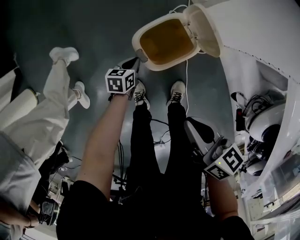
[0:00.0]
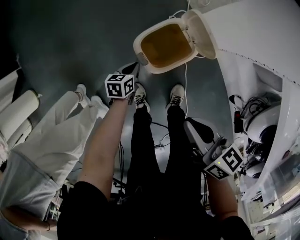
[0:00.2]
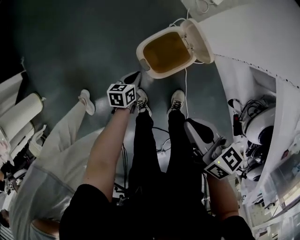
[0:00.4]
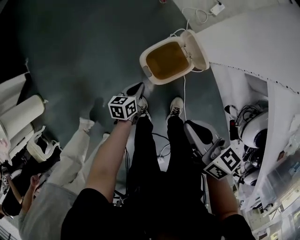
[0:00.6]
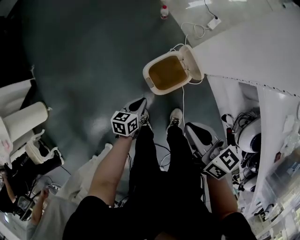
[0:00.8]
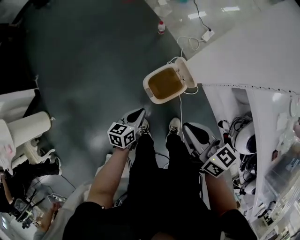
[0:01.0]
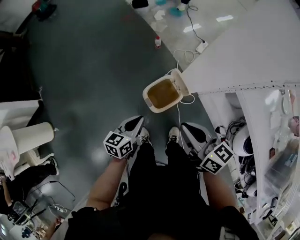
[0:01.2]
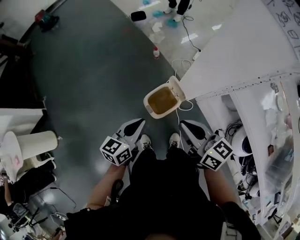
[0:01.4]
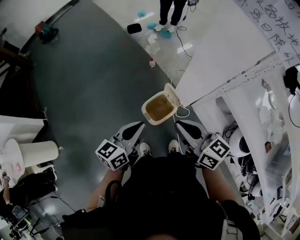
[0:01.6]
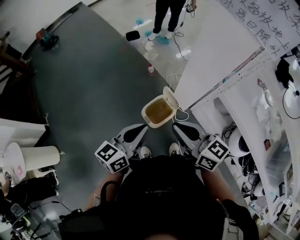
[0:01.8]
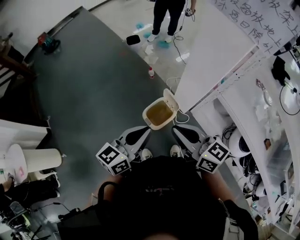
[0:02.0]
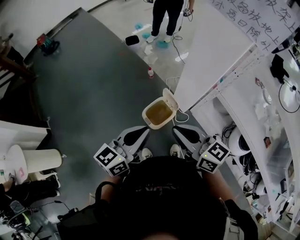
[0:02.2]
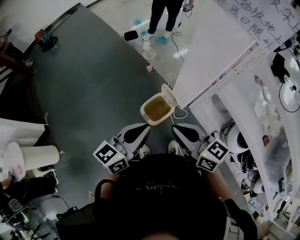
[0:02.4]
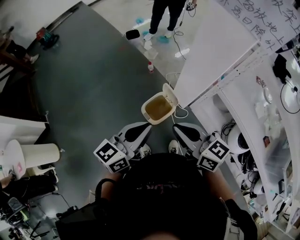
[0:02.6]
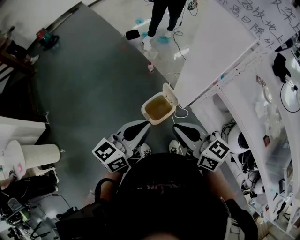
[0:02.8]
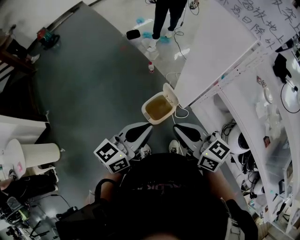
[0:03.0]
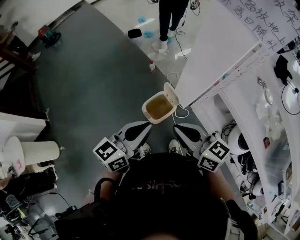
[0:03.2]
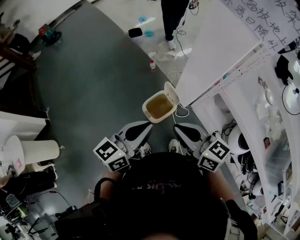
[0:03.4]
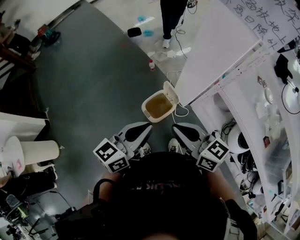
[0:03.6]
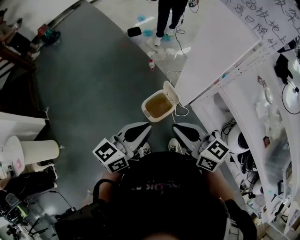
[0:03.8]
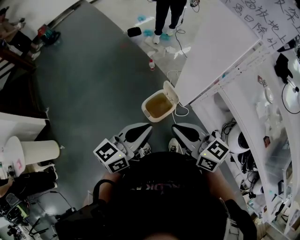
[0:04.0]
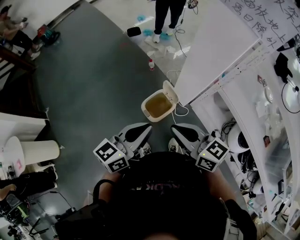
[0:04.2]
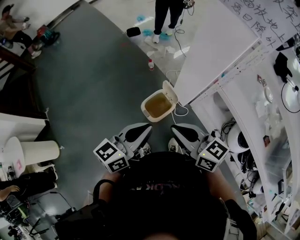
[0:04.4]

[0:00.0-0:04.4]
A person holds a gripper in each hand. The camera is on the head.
0:00.0 to 0:01.4: The left gripper moves upward, approximately 50 cm, and tilts its fingers approximately 30 degrees upward. The right gripper shifts about 30 cm upward, and turns by roughly 20 degrees.
0:01.4 to 0:03.0: The left gripper goes some 15 cm upward, while the right gripper is displaced upward and backward by some 10 cm.
0:03.0 to 0:04.4: The two grippers keep their place.

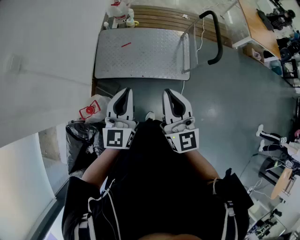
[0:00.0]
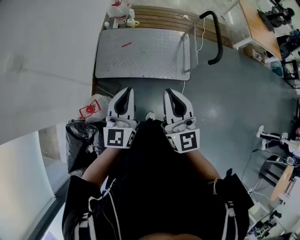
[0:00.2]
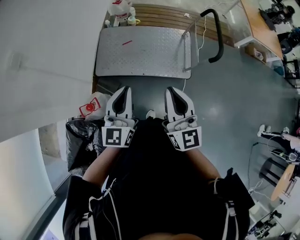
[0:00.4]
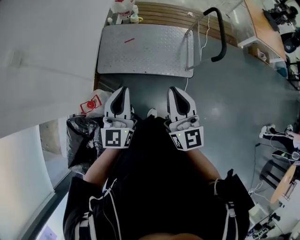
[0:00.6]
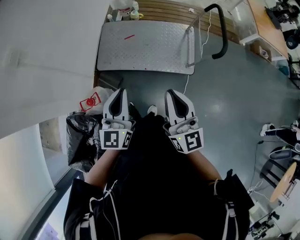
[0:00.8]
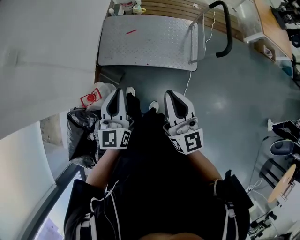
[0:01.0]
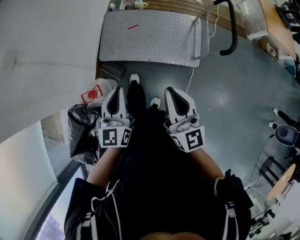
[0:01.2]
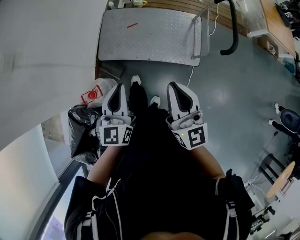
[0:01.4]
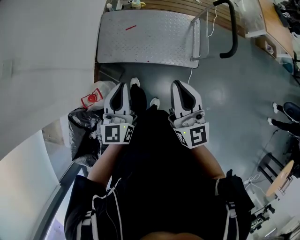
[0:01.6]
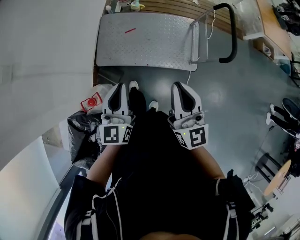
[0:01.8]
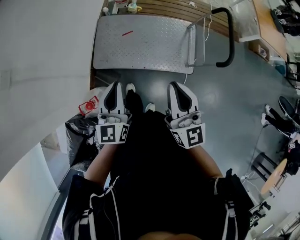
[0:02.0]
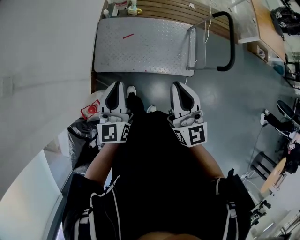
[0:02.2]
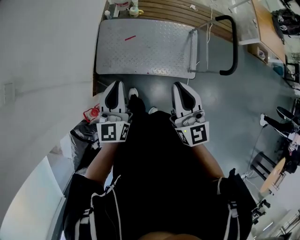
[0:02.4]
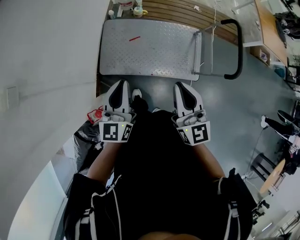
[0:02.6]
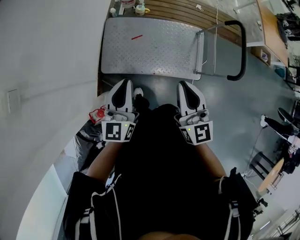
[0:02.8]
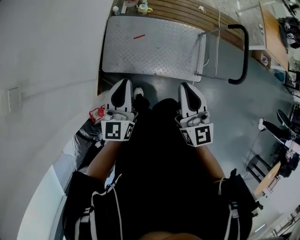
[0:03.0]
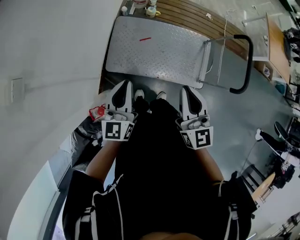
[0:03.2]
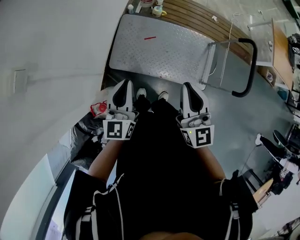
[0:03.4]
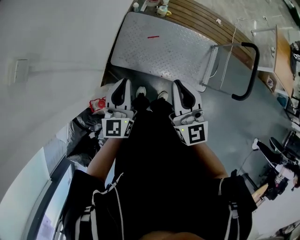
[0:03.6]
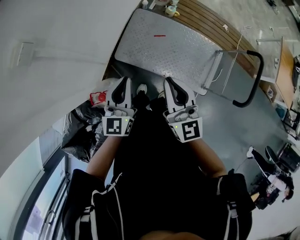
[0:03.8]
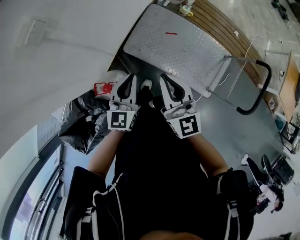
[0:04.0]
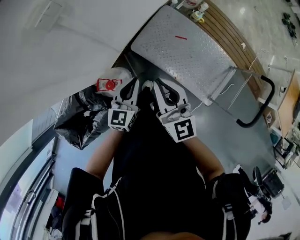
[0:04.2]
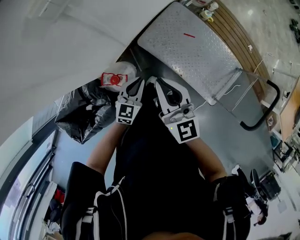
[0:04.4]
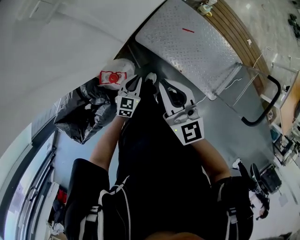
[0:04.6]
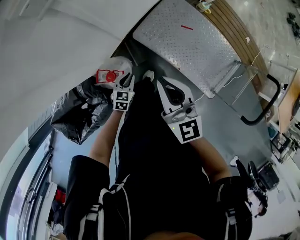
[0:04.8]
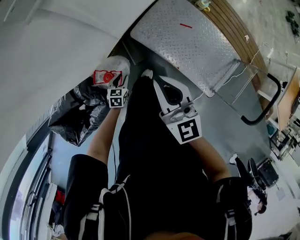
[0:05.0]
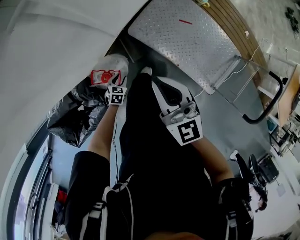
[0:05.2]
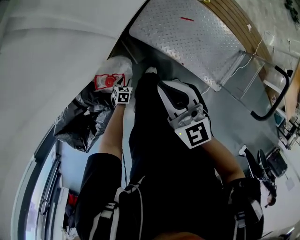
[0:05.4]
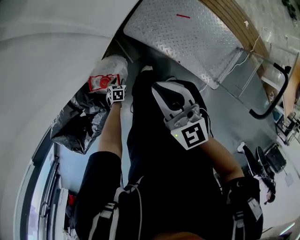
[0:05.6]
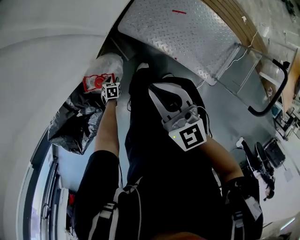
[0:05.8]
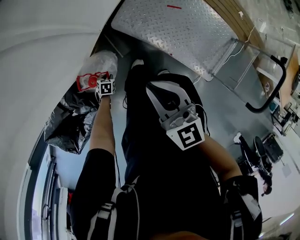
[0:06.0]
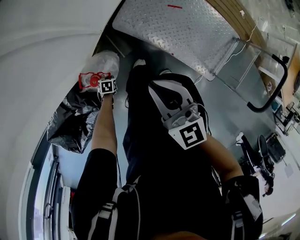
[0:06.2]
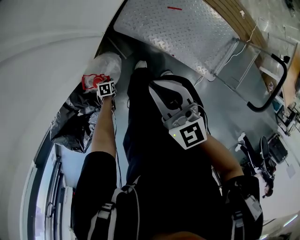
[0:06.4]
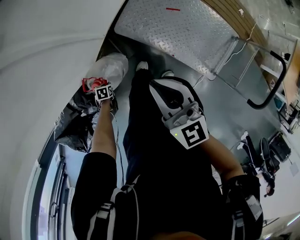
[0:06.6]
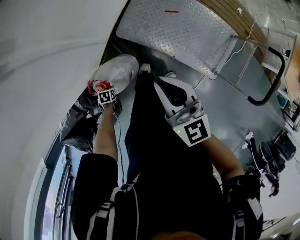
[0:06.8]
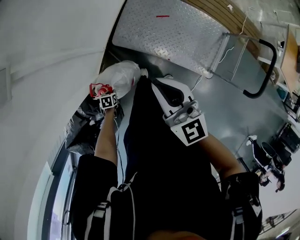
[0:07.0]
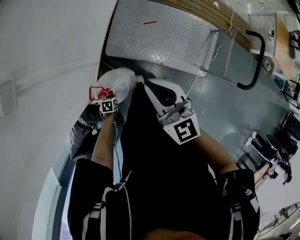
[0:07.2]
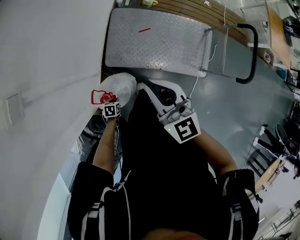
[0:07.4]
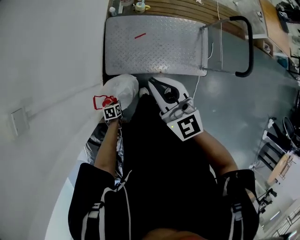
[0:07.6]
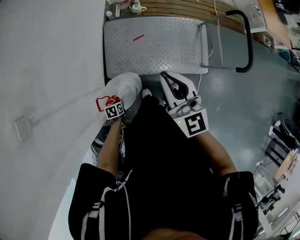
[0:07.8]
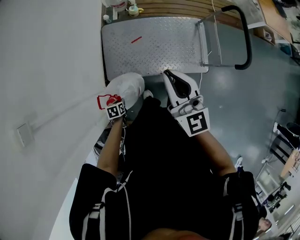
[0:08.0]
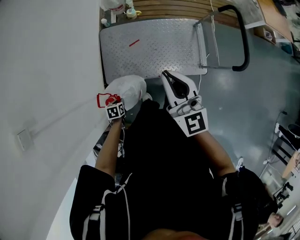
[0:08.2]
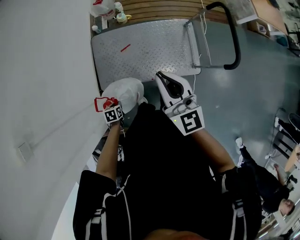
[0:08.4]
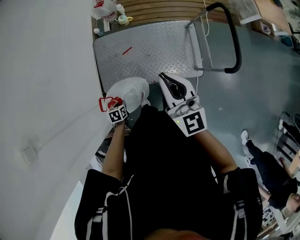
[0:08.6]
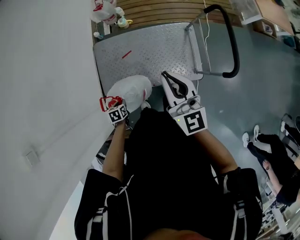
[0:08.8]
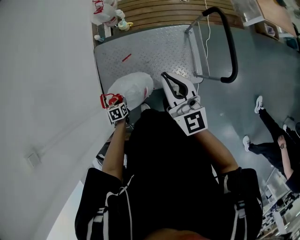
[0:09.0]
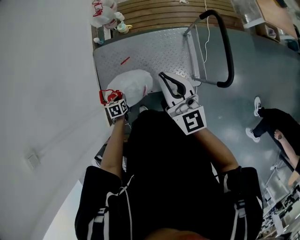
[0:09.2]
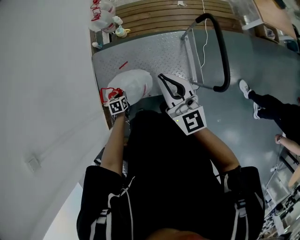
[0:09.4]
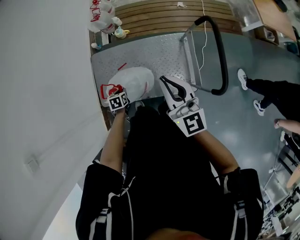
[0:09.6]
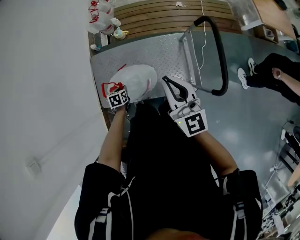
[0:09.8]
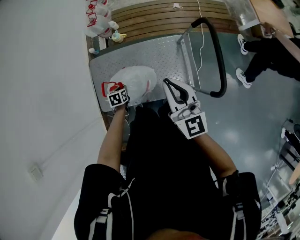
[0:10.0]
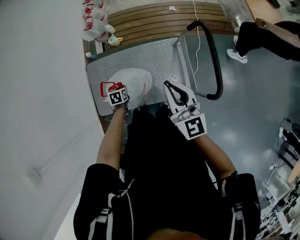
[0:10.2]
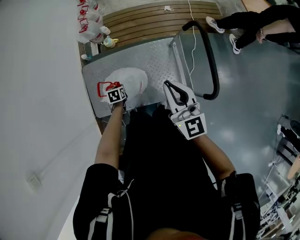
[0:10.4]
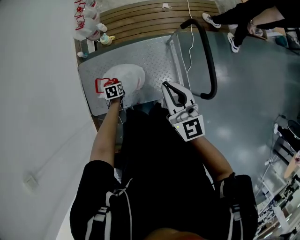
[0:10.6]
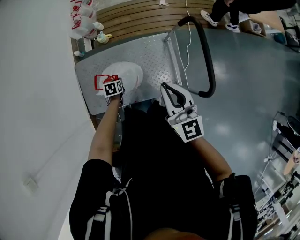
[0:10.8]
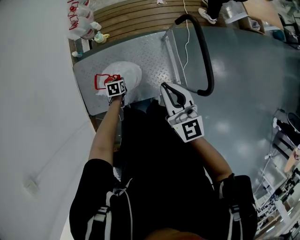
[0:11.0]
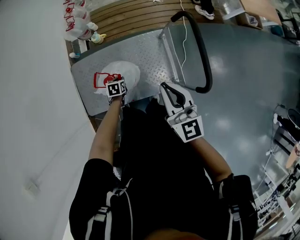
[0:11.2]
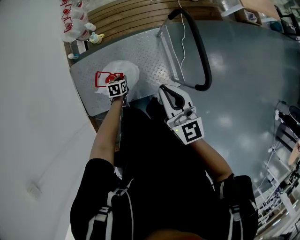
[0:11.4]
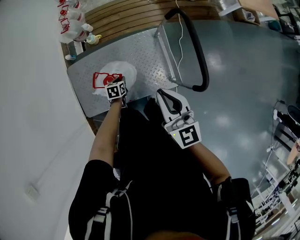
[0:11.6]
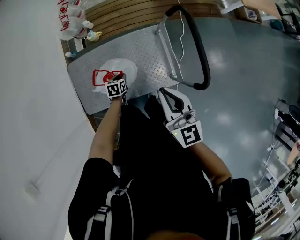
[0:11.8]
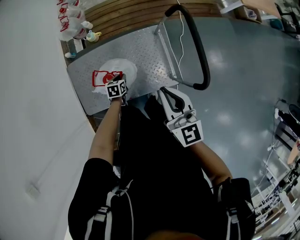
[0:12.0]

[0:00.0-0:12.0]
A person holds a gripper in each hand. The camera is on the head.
0:00.0 to 0:01.6: The left gripper changes place by roughly 5 cm; the right gripper is displaced forward by some 5 cm.
0:01.6 to 0:03.0: Both grippers move forward and to the left, approximately 20 cm.
0:03.0 to 0:04.4: The right gripper shifts by approximately 25 cm, and turns by approximately 40 degrees; the left gripper heads downward, covering about 20 cm, and rotates about 30 degrees.
0:04.4 to 0:06.0: The left gripper moves downward, some 40 cm, tips its fingers downward by about 50 degrees, and opens up, while the right gripper heads downward, covering some 15 cm.
0:06.0 to 0:07.6: The grippers both shift upward by roughly 20 cm. The right gripper turns by approximately 30 degrees.
0:07.6 to 0:09.0: The left gripper travels forward and to the right by approximately 30 cm; the right gripper shifts some 35 cm to the right and forward.
0:09.0 to 0:10.4: The right gripper is displaced to the right and forward by some 15 cm. Meanwhile the left gripper goes roughly 25 cm forward and to the right.
0:10.4 to 0:12.0: The left gripper goes some 10 cm to the right. Meanwhile the right gripper shifts roughly 5 cm to the right.

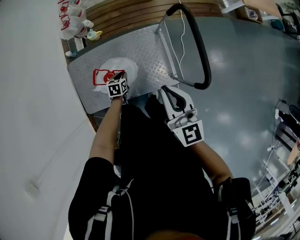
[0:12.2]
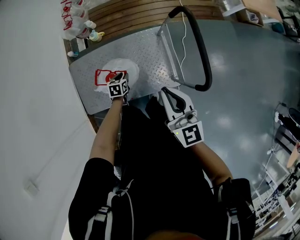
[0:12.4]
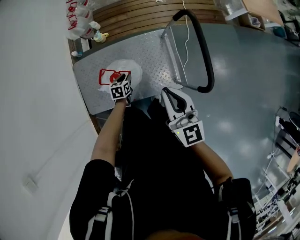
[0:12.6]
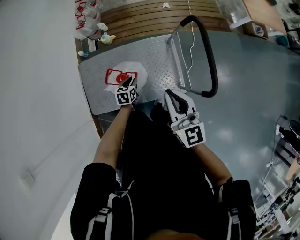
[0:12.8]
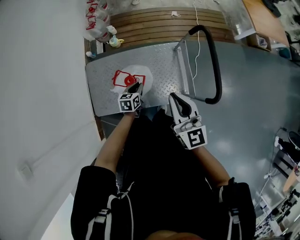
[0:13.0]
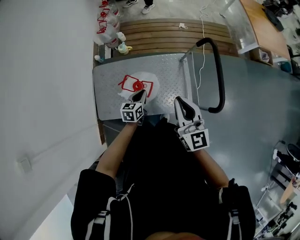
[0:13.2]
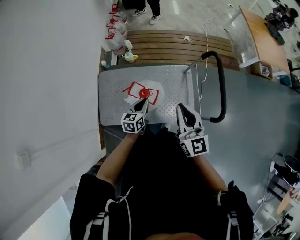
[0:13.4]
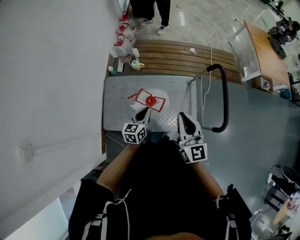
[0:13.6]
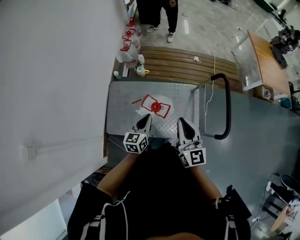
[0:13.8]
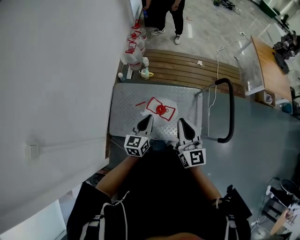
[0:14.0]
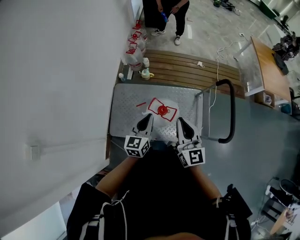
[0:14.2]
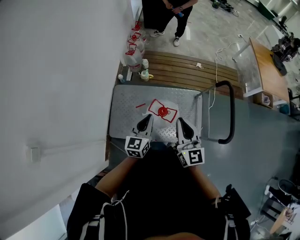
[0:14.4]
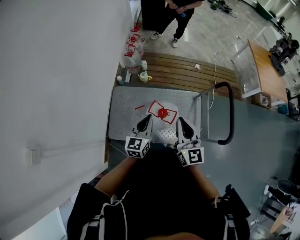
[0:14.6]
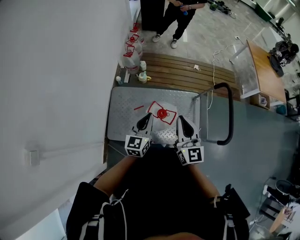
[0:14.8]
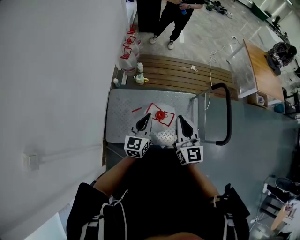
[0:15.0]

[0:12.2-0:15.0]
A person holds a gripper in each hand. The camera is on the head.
0:12.2 to 0:13.6: The right gripper heads to the left and upward, covering roughly 10 cm. The left gripper travels upward by approximately 25 cm, and tilts its fingers approximately 30 degrees upward.
0:13.6 to 0:15.0: The left gripper moves upward and to the left, about 15 cm; the right gripper moves to the left, about 10 cm.

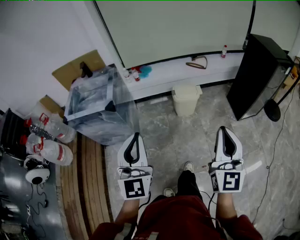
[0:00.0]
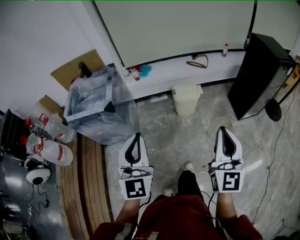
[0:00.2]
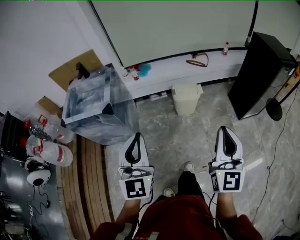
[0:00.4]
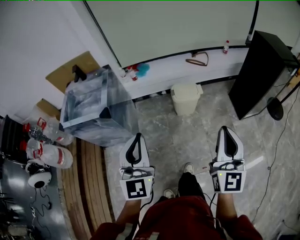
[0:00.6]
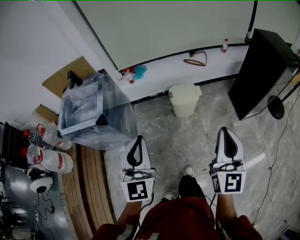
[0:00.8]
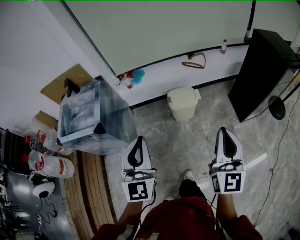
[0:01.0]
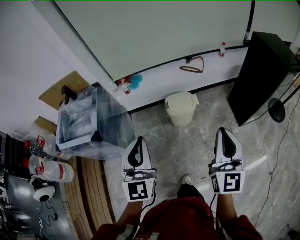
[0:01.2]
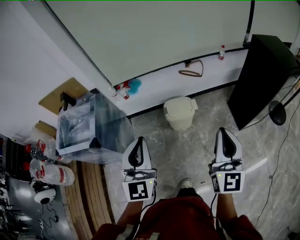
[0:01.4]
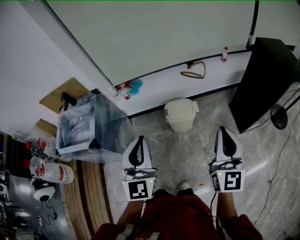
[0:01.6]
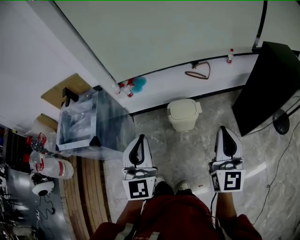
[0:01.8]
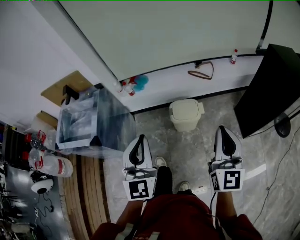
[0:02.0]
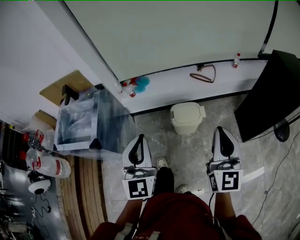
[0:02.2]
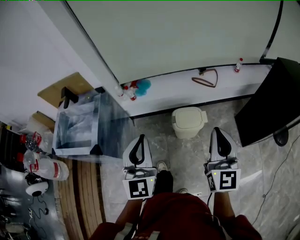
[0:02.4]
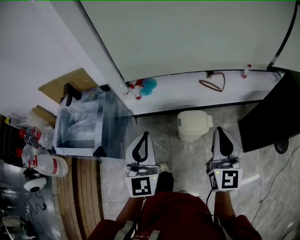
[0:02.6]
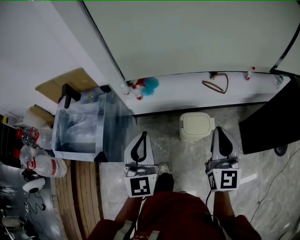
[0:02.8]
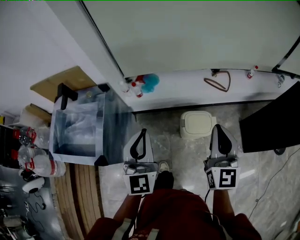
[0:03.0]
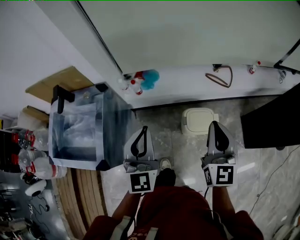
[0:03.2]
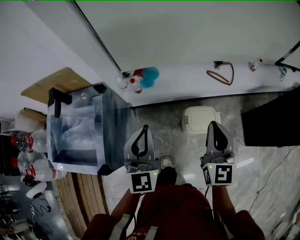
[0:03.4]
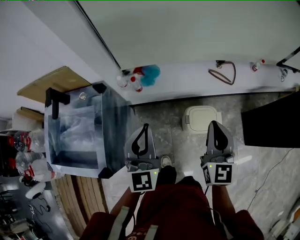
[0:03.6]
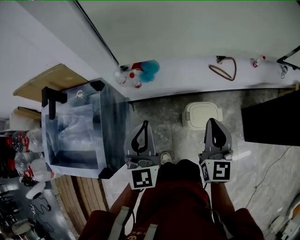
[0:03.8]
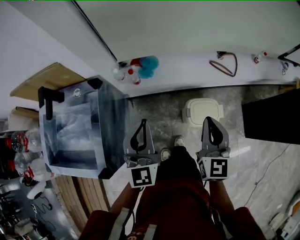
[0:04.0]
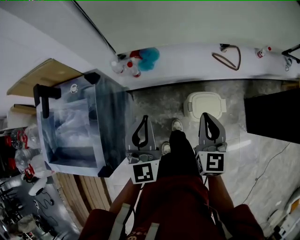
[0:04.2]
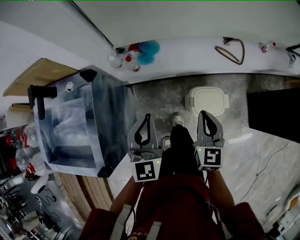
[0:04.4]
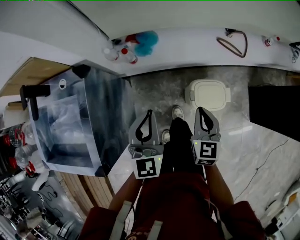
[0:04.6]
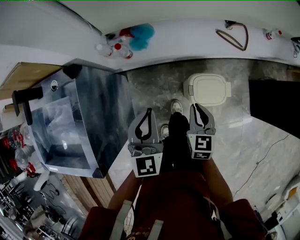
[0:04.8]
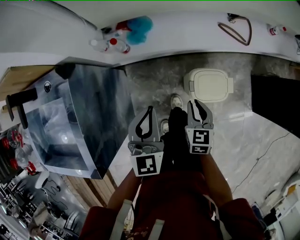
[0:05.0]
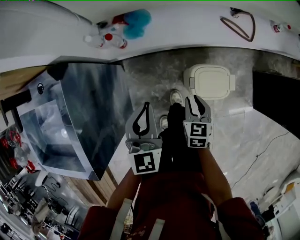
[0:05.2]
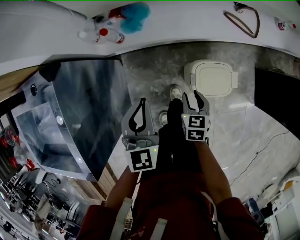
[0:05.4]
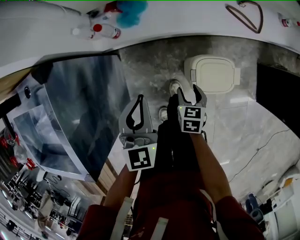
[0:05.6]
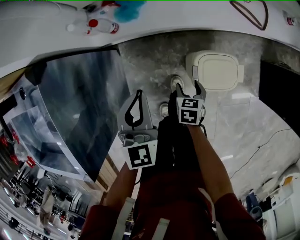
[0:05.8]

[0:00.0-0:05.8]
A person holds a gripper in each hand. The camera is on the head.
0:00.0 to 0:01.4: The grippers both shift forward and to the right by some 30 cm.
0:01.4 to 0:02.8: Both grippers travel together forward and to the left, roughly 25 cm.
0:02.8 to 0:04.4: Both grippers travel together downward, forward and to the left, roughly 30 cm. The right gripper rotates about 20 degrees.
0:04.4 to 0:05.8: The right gripper is displaced downward by approximately 35 cm, tilts its fingers about 40 degrees downward, and opens up. The left gripper goes about 15 cm downward.
